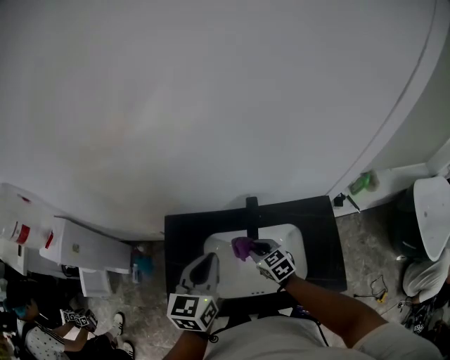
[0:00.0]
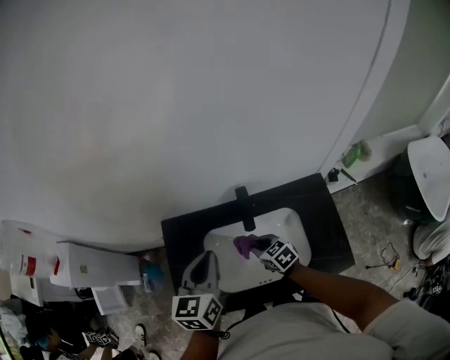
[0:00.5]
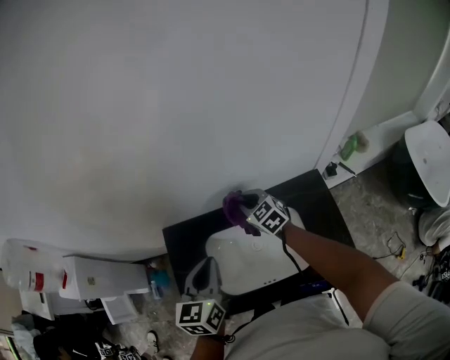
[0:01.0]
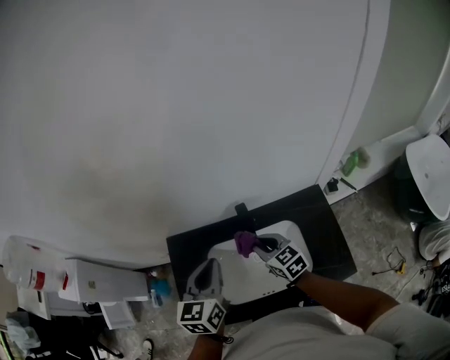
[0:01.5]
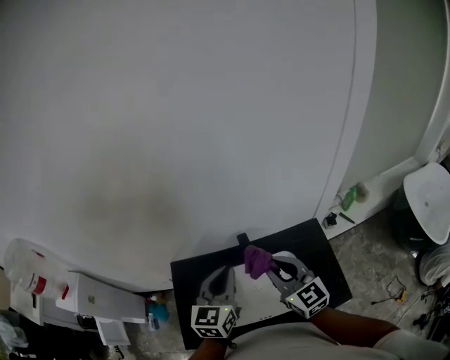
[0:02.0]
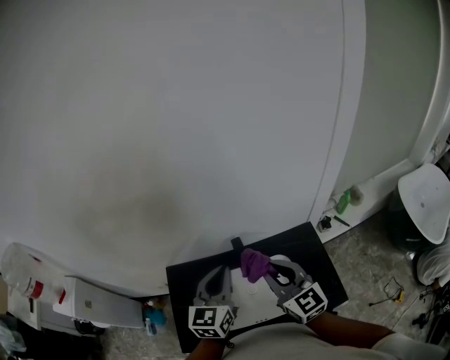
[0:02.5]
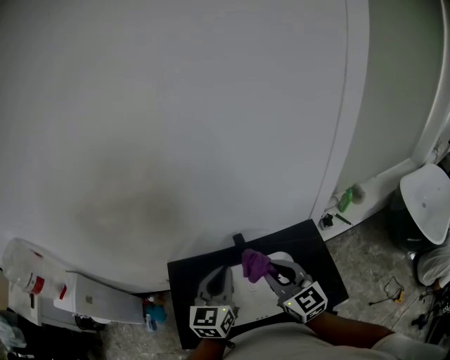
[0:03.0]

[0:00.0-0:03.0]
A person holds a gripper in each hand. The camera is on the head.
0:00.0 to 0:01.5: The right gripper moves upward, roughly 10 cm, and travels forward and back again, some 10 cm each way.
0:01.5 to 0:03.0: The left gripper is displaced to the right and upward by some 10 cm, while the right gripper shifts roughly 20 cm upward, and changes its angle by some 30 degrees.

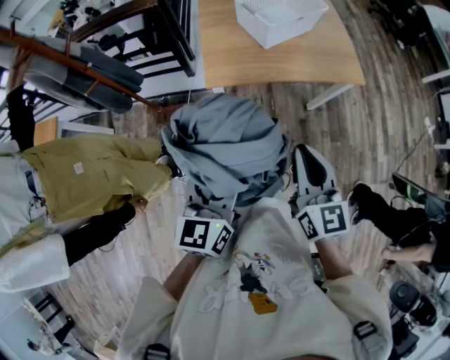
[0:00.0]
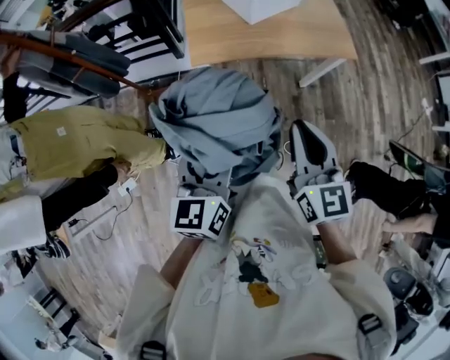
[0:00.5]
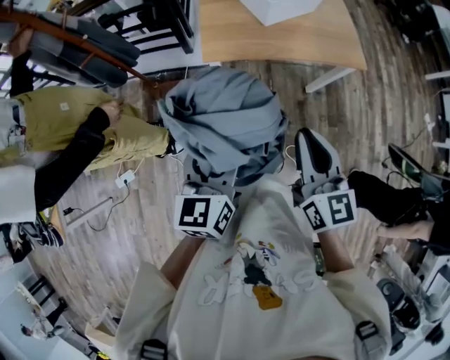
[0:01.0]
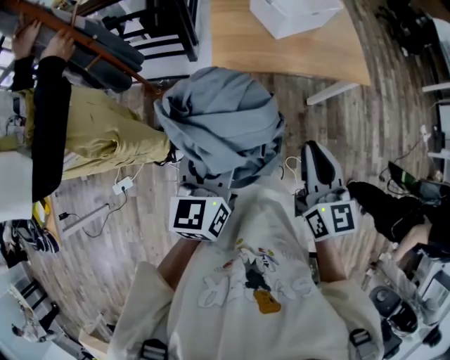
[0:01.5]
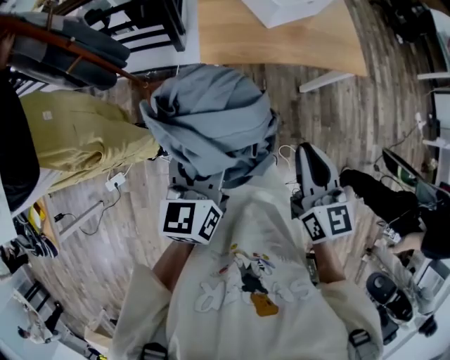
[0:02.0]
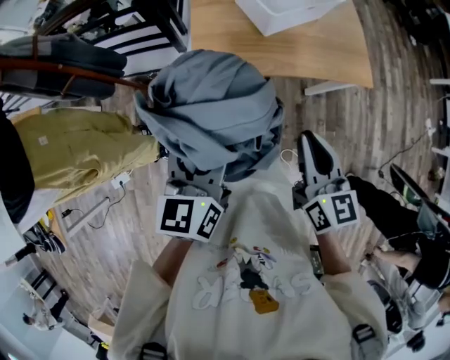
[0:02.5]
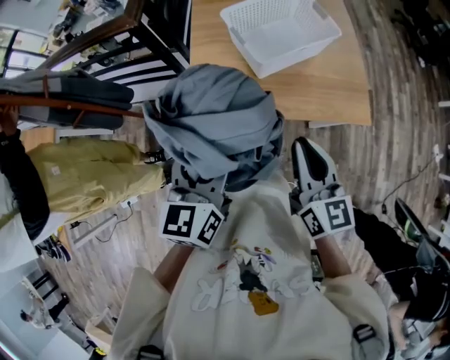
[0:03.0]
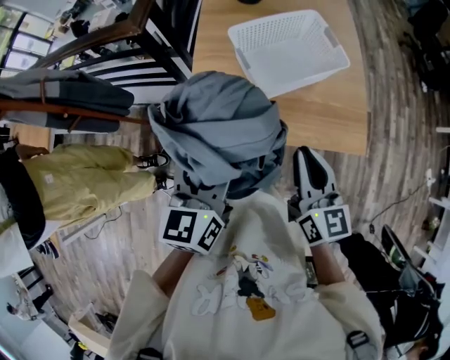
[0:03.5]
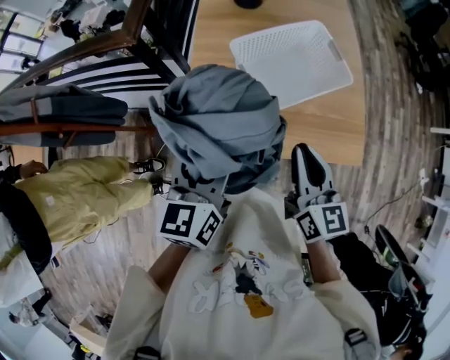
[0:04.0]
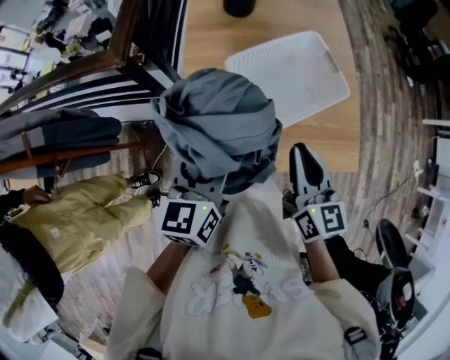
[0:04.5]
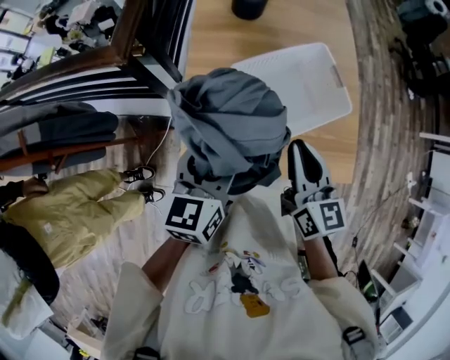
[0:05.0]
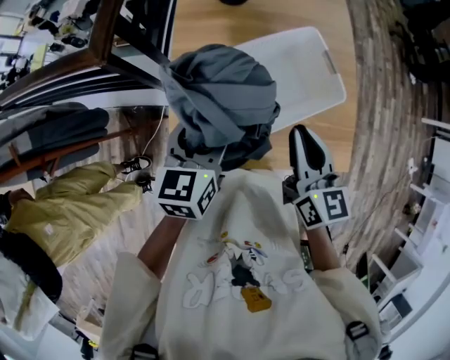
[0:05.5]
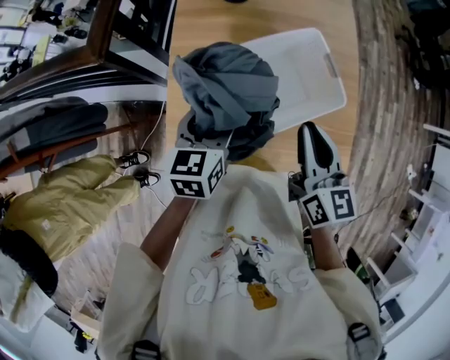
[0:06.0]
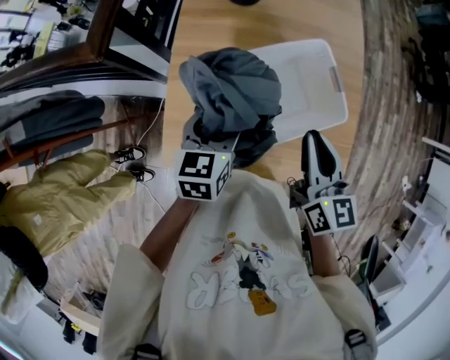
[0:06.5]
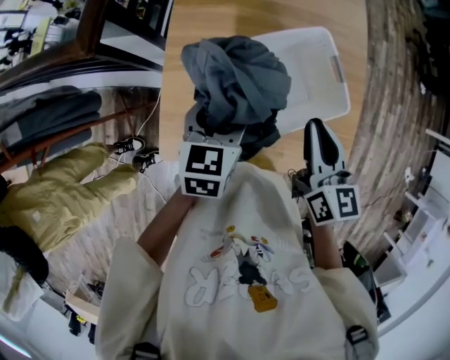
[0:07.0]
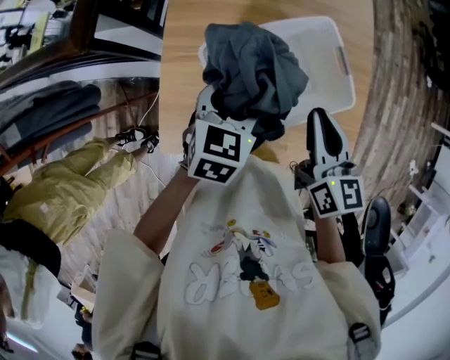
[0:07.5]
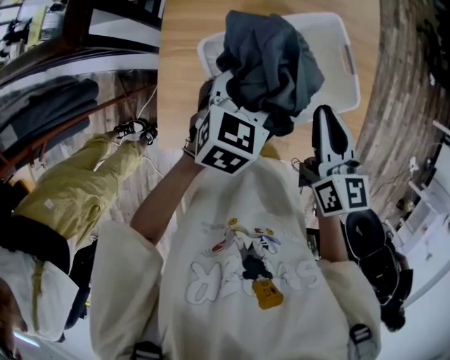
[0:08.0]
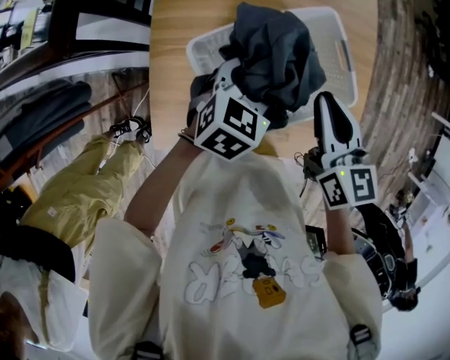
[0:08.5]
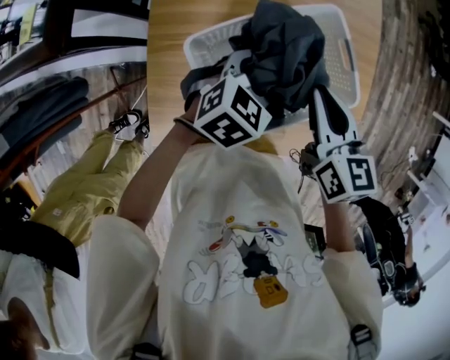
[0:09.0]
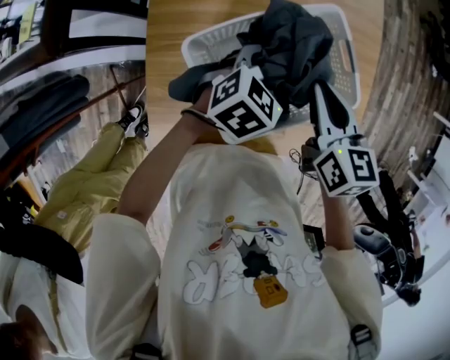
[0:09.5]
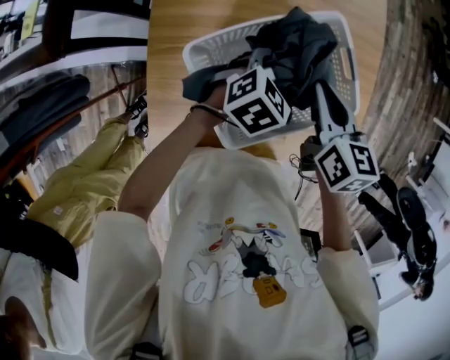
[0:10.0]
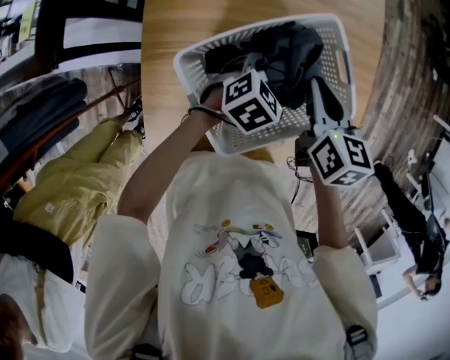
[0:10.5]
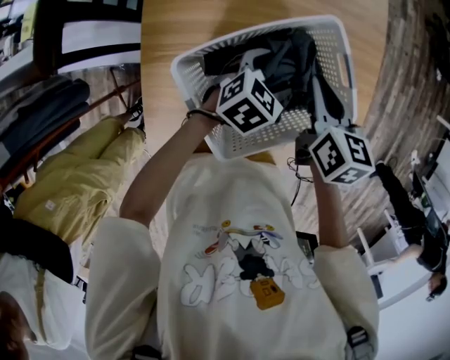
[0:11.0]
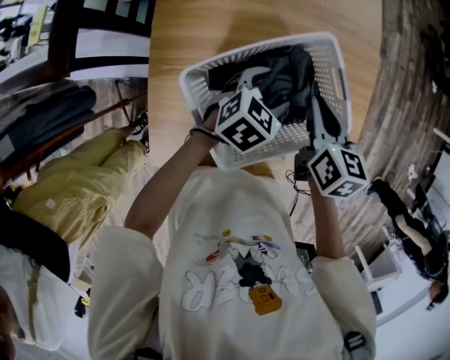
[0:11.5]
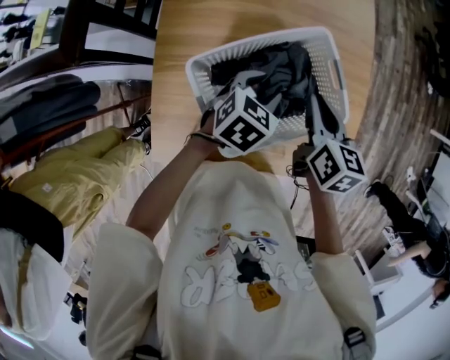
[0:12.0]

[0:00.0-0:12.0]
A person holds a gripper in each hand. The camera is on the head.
0:00.0 to 0:02.0: The left gripper changes place by approximately 5 cm.
0:02.0 to 0:04.0: The grippers both shift forward by approximately 35 cm.
0:04.0 to 0:06.0: The right gripper is displaced forward by approximately 15 cm; the left gripper travels forward and downward by approximately 20 cm.
0:06.0 to 0:08.0: The right gripper is displaced downward and forward by roughly 10 cm. Meanwhile the left gripper shifts approximately 10 cm to the right, downward and forward, and turns by approximately 30 degrees.
0:08.0 to 0:10.0: The left gripper goes about 10 cm downward and to the right, and rotates about 20 degrees. The right gripper shifts some 10 cm downward and forward.
0:10.0 to 0:12.0: The grippers make only small movements.

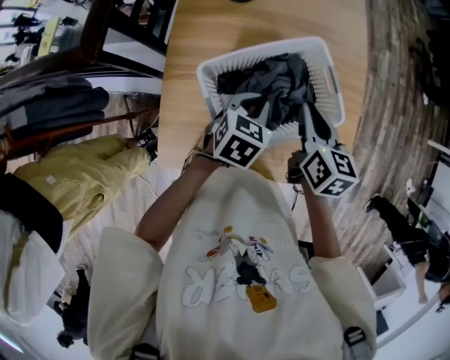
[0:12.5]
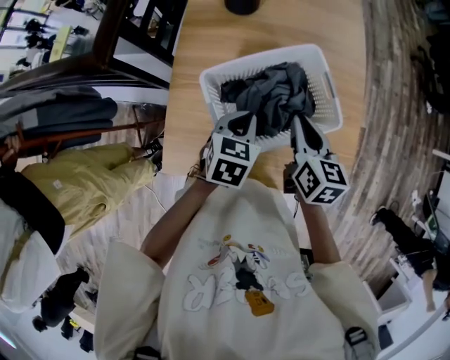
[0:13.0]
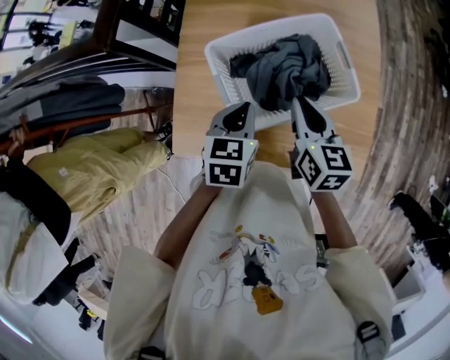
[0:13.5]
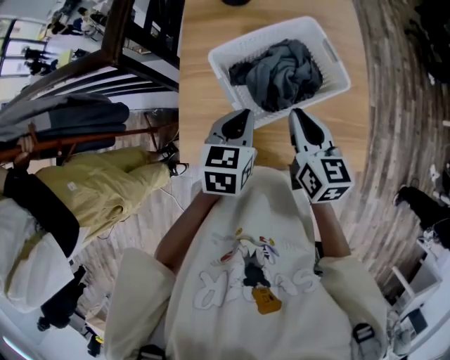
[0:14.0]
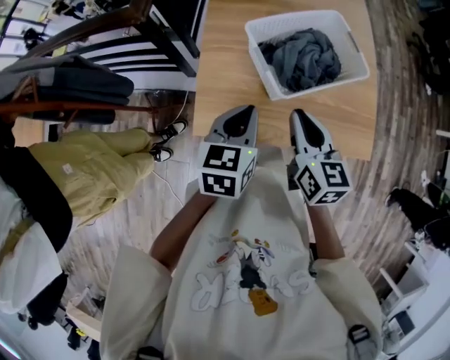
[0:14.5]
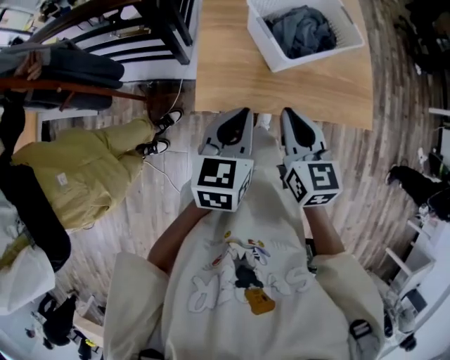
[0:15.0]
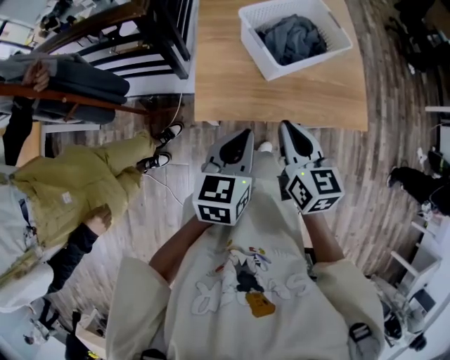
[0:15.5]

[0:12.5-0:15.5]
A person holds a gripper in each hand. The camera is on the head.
0:12.5 to 0:14.0: The left gripper travels backward, upward and to the left by roughly 15 cm; the right gripper heads backward, covering about 10 cm.
0:14.0 to 0:15.5: The left gripper goes roughly 25 cm backward; the right gripper is displaced backward and to the left by approximately 25 cm.

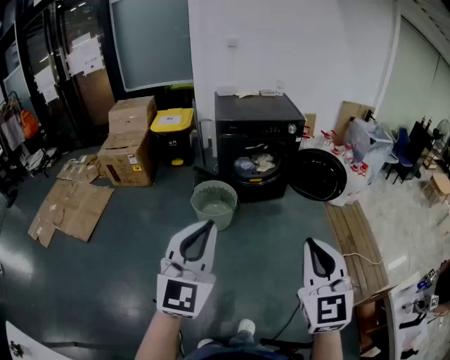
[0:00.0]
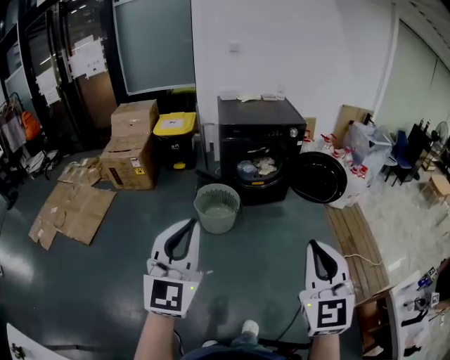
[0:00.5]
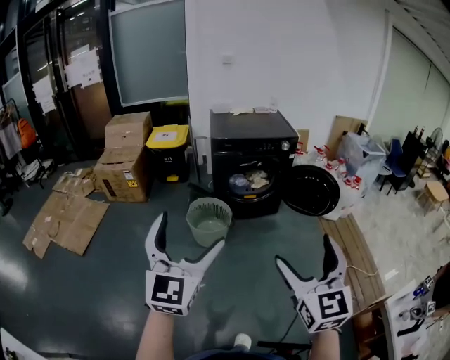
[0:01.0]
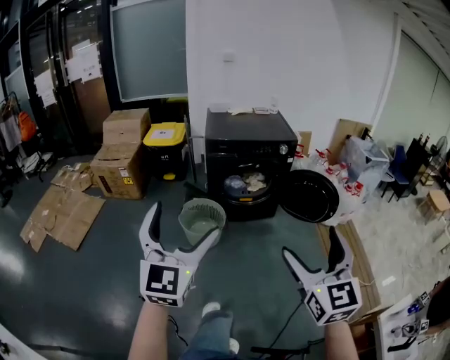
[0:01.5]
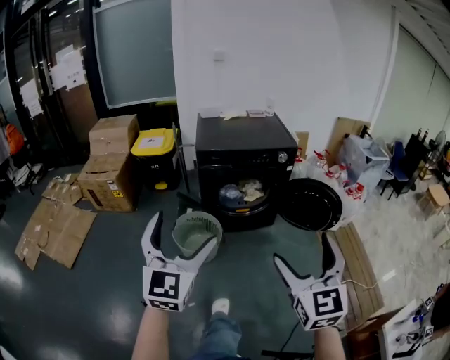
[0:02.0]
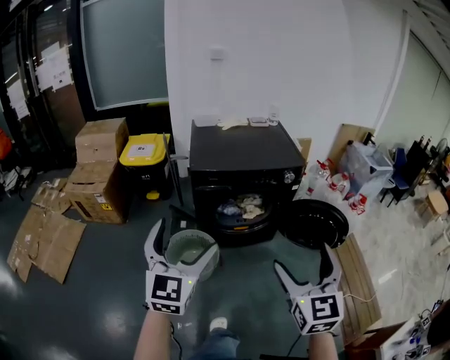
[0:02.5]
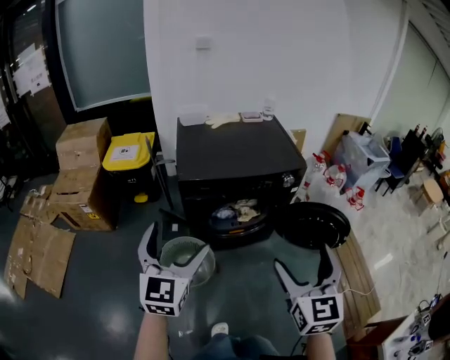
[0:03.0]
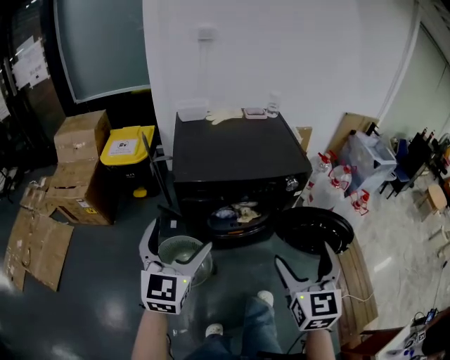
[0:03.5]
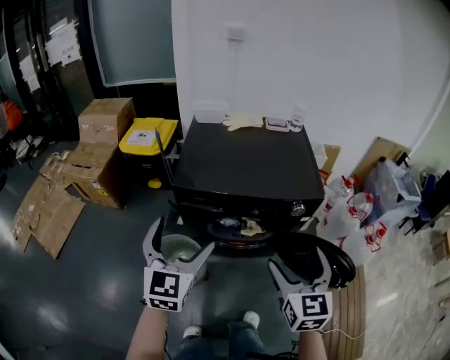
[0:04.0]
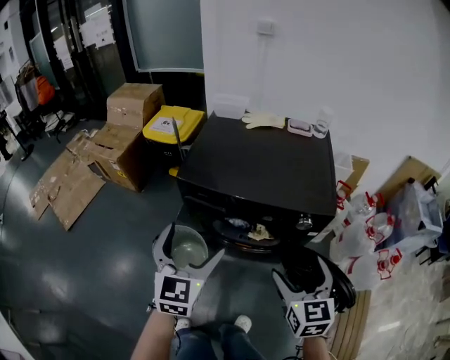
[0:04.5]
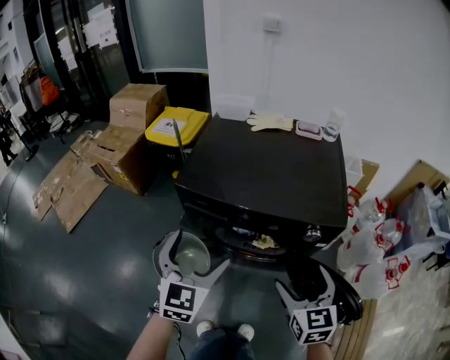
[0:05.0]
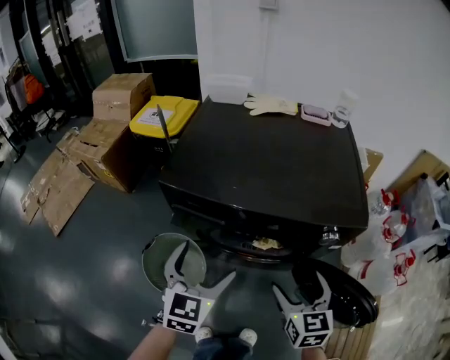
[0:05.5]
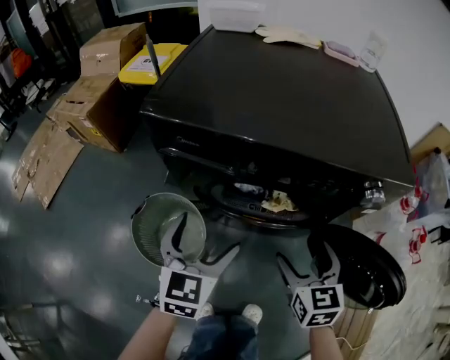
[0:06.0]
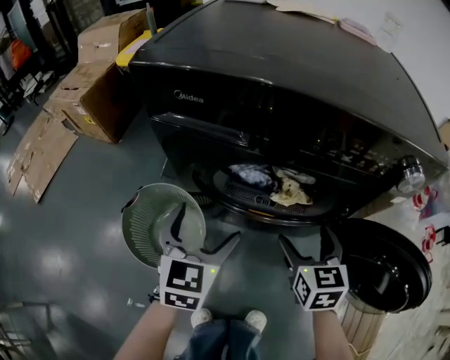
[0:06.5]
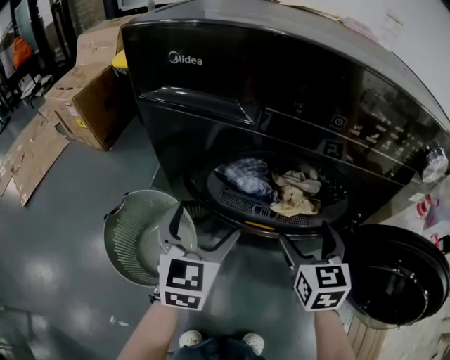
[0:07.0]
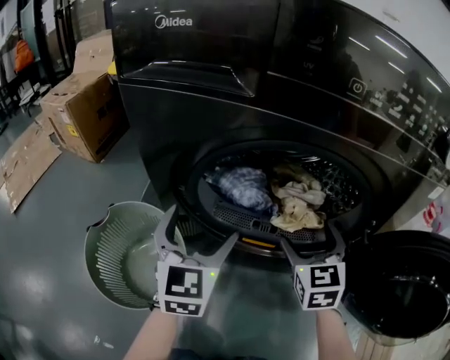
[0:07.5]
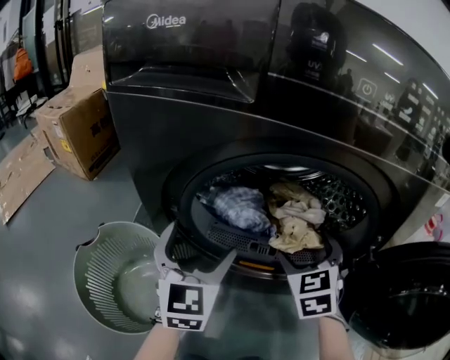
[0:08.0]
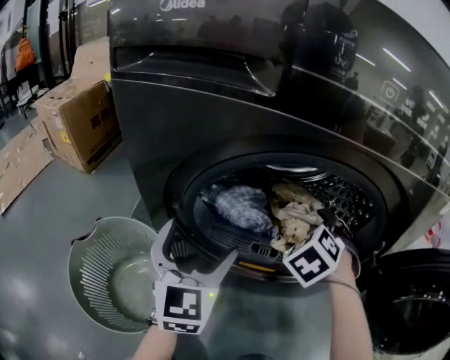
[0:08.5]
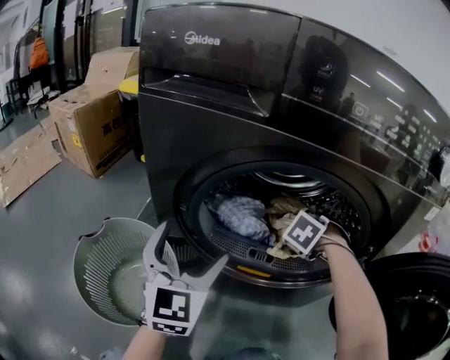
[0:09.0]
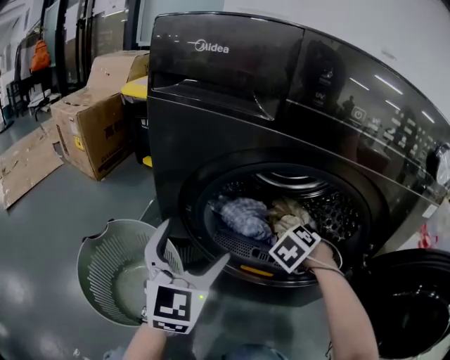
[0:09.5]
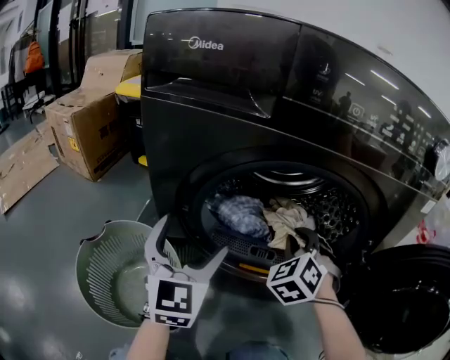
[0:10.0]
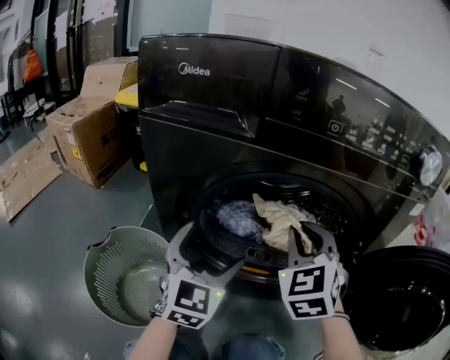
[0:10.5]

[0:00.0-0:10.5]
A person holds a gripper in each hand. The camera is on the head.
0:00.0 to 0:02.0: The grippers both shift forward by some 25 cm. The left gripper opens its fingers. Meanwhile the right gripper opens.
0:02.0 to 0:04.0: The pair of grippers is taken forward, roughly 50 cm.
0:04.0 to 0:06.5: Both grippers move downward, roughly 40 cm. The right gripper swivels approximately 20 degrees.
0:06.5 to 0:08.5: The right gripper goes approximately 25 cm forward and downward, and rolls counterclockwise, seen from behind, by approximately 50 degrees. Meanwhile the left gripper travels downward and forward by roughly 15 cm, and rotates about 20 degrees.
0:08.5 to 0:10.5: The right gripper goes roughly 15 cm upward and backward, tilts its fingers approximately 30 degrees upward, and closes its fingers, while the left gripper ends up some 5 cm from where it was.
